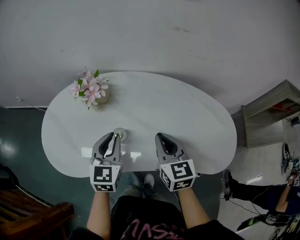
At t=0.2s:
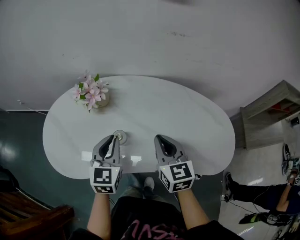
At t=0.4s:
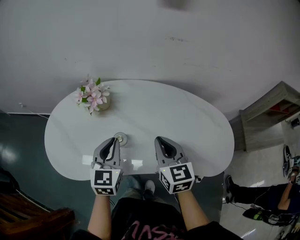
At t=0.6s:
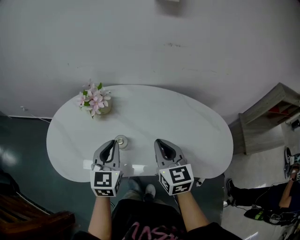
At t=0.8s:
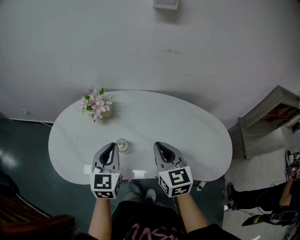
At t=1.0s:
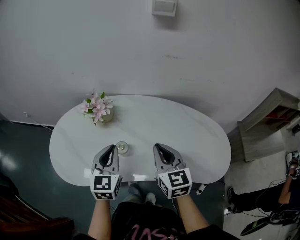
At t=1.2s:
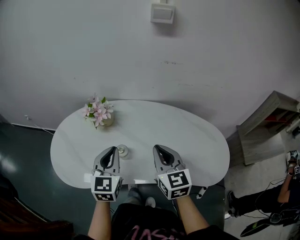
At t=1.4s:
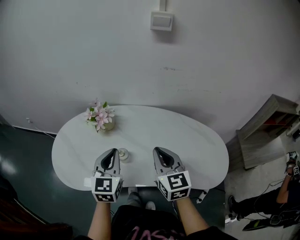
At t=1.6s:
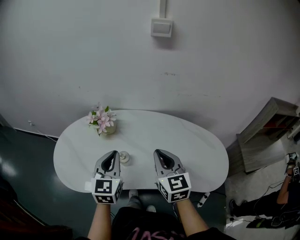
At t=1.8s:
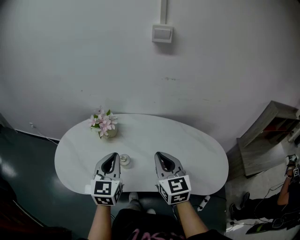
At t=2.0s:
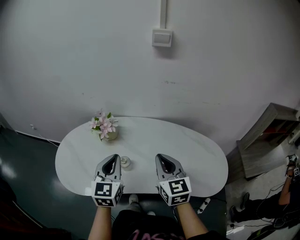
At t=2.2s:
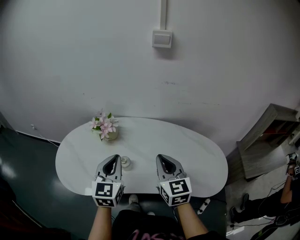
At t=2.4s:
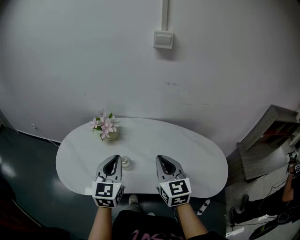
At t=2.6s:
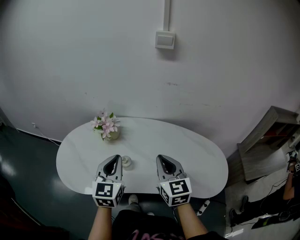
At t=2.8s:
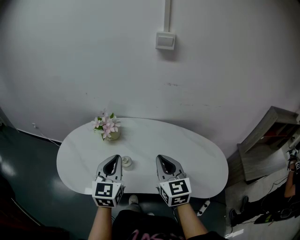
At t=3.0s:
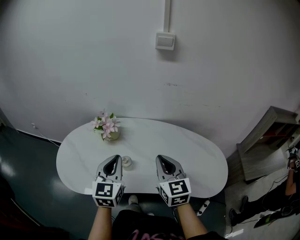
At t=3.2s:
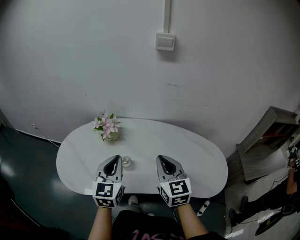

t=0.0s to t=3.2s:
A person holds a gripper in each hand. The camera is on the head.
t=0.0s to t=1.6s: Both grippers travel together upward, about 10 cm.
t=1.6s to t=3.2s: The grippers move only a little.

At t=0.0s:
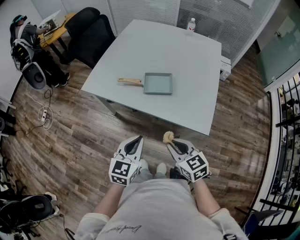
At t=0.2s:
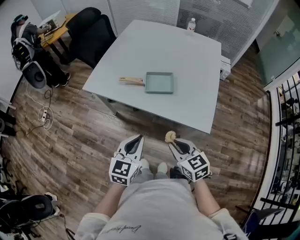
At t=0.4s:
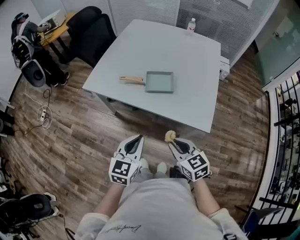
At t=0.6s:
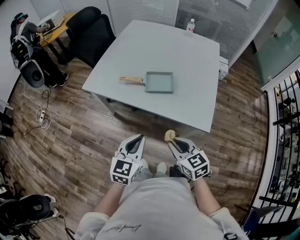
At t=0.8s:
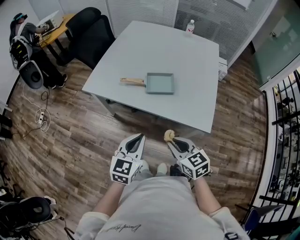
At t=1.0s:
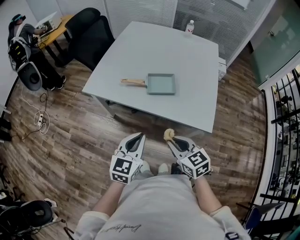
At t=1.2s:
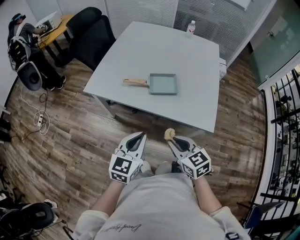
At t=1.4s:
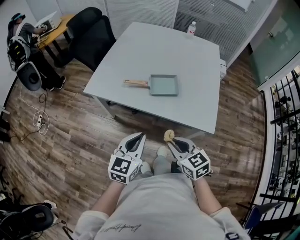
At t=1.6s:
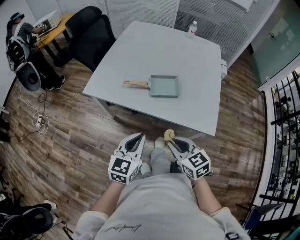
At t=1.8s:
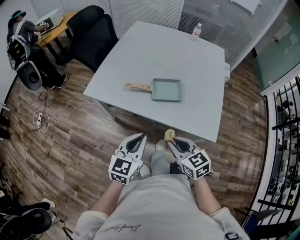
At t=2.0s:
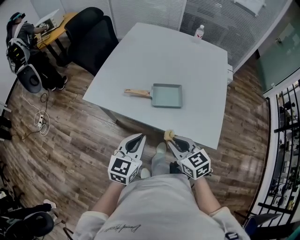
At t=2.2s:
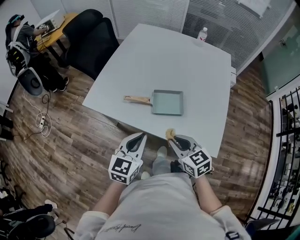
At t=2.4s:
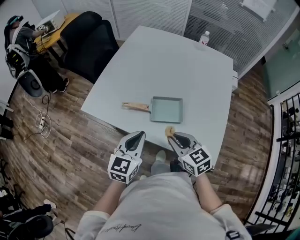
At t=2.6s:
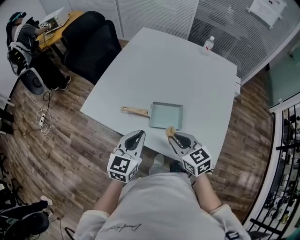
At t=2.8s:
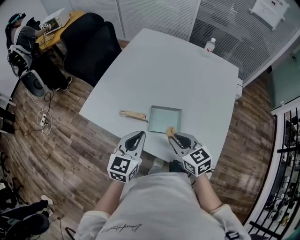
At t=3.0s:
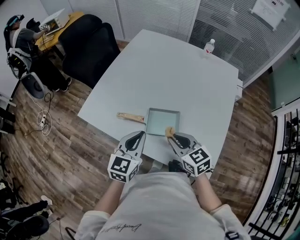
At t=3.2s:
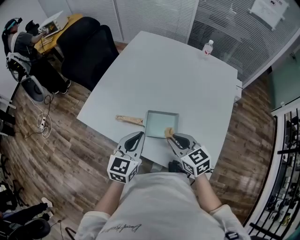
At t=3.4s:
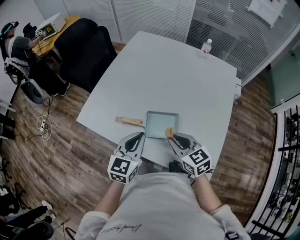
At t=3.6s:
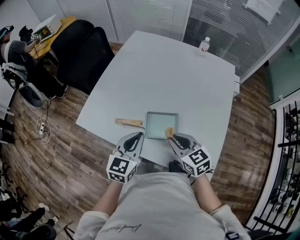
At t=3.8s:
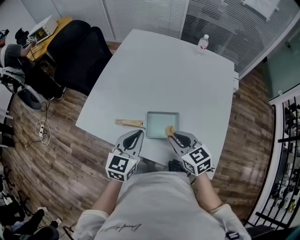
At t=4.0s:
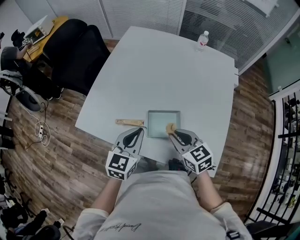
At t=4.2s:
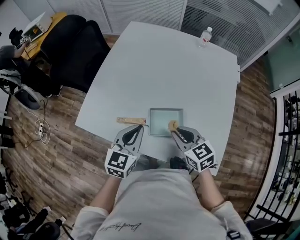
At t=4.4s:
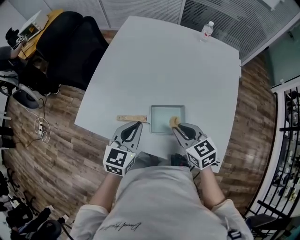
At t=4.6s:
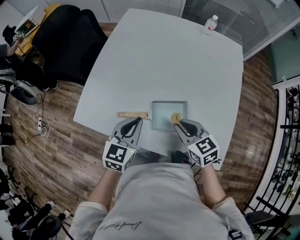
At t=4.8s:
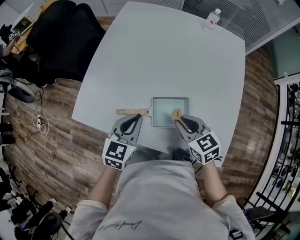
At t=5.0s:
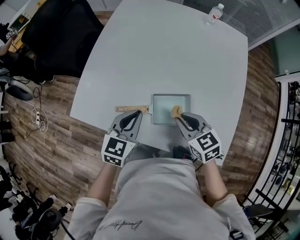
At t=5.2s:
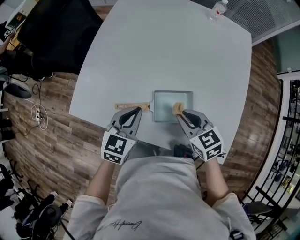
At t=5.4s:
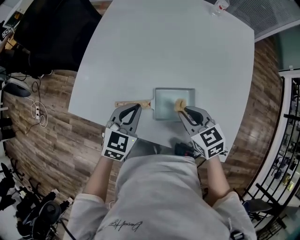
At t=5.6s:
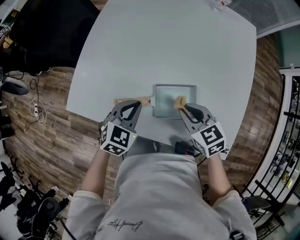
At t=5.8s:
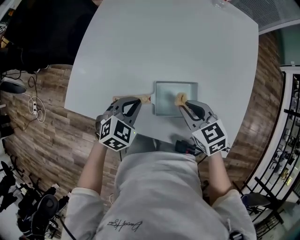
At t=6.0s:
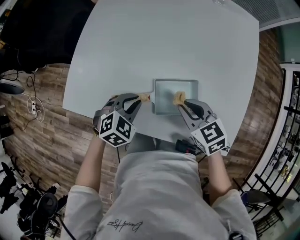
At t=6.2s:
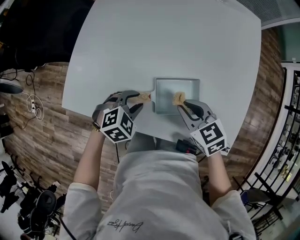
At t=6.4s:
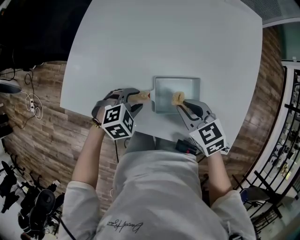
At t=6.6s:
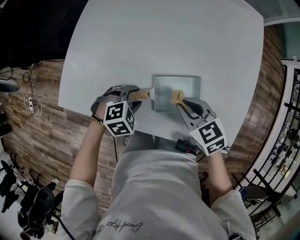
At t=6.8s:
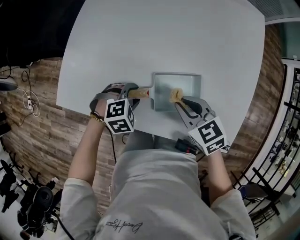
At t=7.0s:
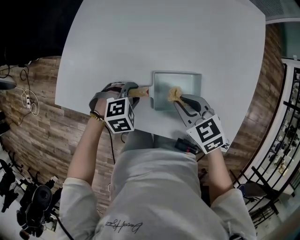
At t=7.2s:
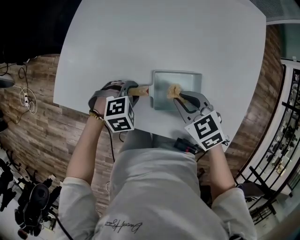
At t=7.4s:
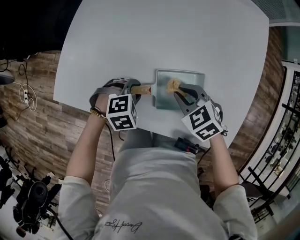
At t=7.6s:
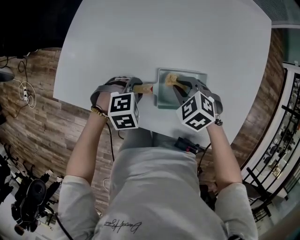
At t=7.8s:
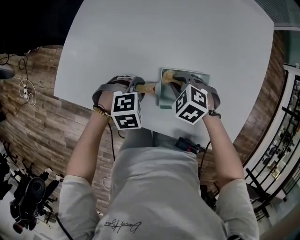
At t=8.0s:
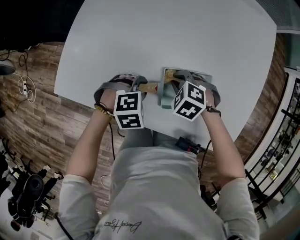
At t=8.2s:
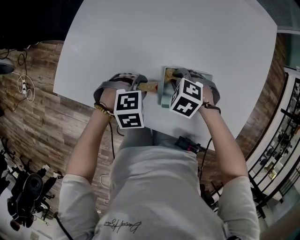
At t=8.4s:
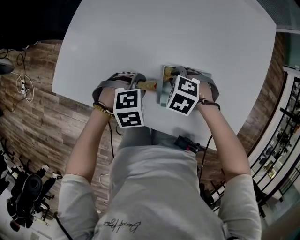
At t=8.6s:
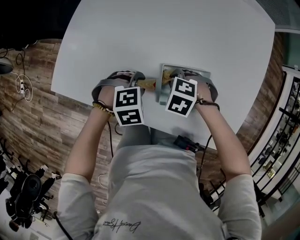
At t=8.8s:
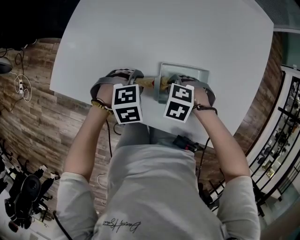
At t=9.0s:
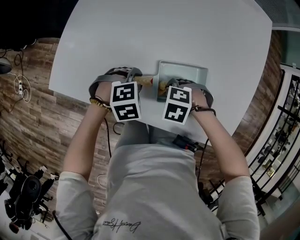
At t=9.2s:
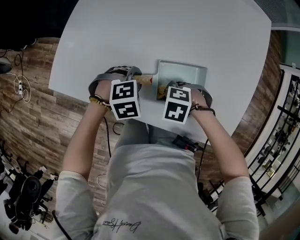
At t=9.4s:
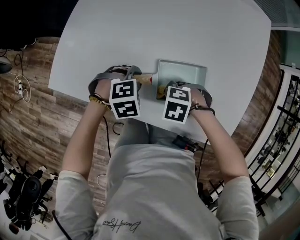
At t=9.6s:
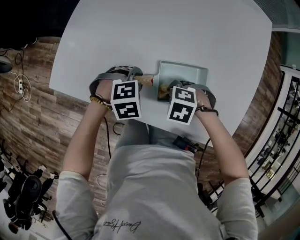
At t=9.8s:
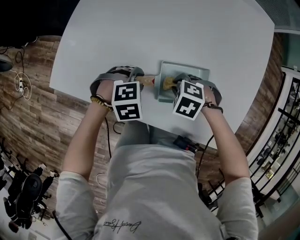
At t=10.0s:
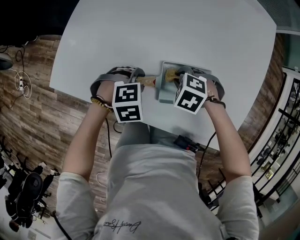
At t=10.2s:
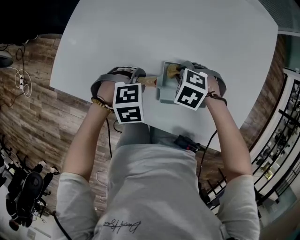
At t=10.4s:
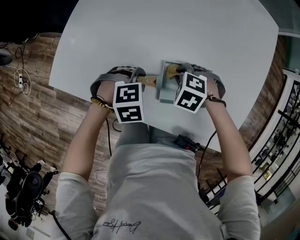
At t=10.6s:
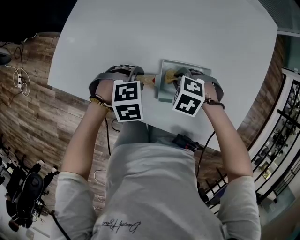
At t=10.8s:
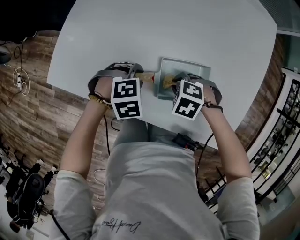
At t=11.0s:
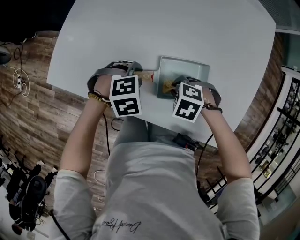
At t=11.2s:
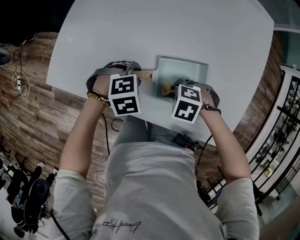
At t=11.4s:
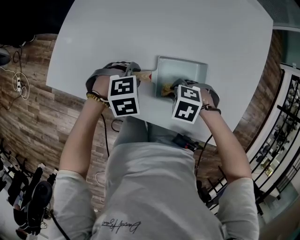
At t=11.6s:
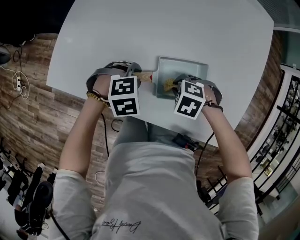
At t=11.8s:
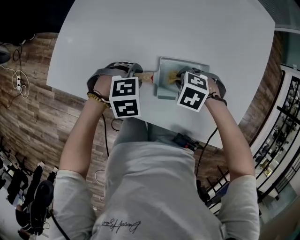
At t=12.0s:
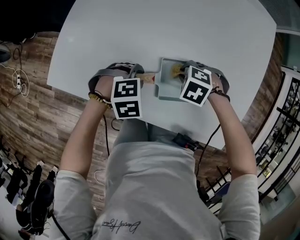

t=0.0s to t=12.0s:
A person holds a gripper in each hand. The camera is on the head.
t=0.0s to t=1.6s: The grippers both shift to the left by some 5 cm.
t=1.6s to t=3.0s: Both grippers move forward, approximately 25 cm.
t=3.0s to t=4.4s: Both grippers travel together forward, roughly 5 cm.
t=4.4s to t=6.0s: The left gripper heads downward, covering some 15 cm, and tilts its fingers some 30 degrees downward. Meanwhile the right gripper goes approximately 5 cm downward.
t=6.0s to t=7.6s: Both grippers travel together downward, roughly 10 cm. The left gripper rotates roughly 20 degrees, and opens up. Meanwhile the right gripper swivels roughly 40 degrees.
t=7.6s to t=9.0s: The right gripper shifts by approximately 10 cm, and turns by approximately 30 degrees.
t=9.0s to t=10.4s: The right gripper shifts by approximately 5 cm.

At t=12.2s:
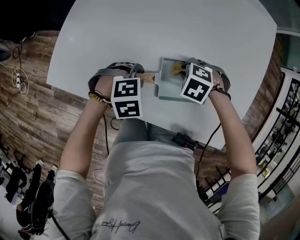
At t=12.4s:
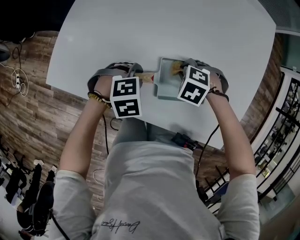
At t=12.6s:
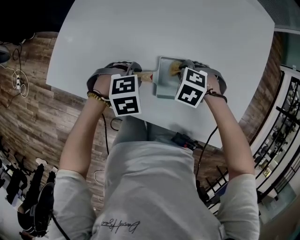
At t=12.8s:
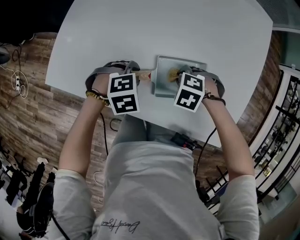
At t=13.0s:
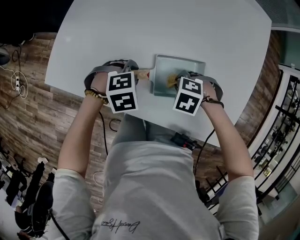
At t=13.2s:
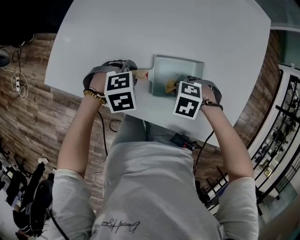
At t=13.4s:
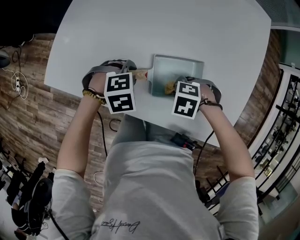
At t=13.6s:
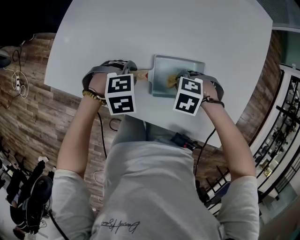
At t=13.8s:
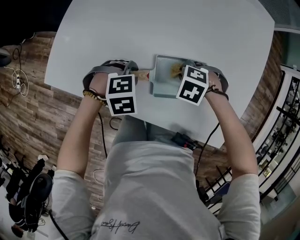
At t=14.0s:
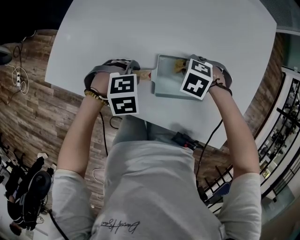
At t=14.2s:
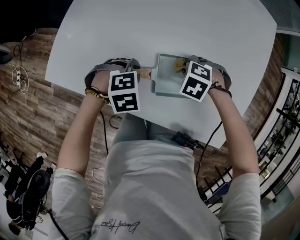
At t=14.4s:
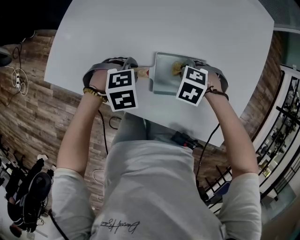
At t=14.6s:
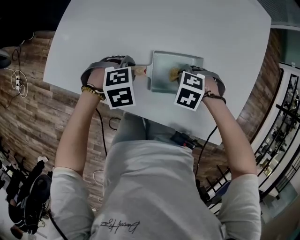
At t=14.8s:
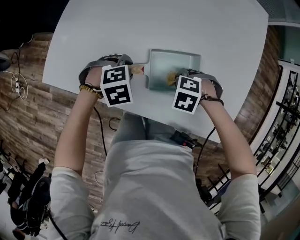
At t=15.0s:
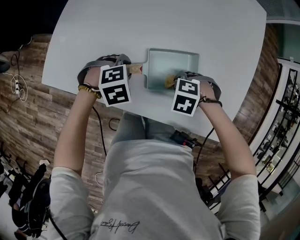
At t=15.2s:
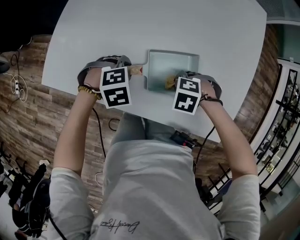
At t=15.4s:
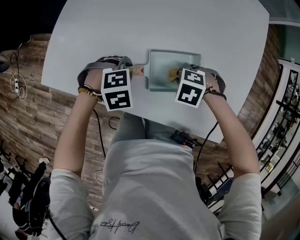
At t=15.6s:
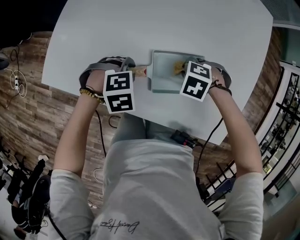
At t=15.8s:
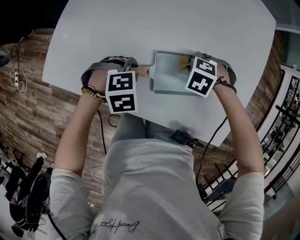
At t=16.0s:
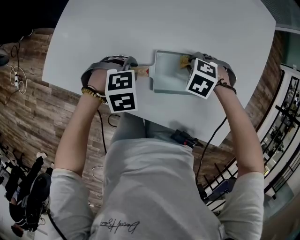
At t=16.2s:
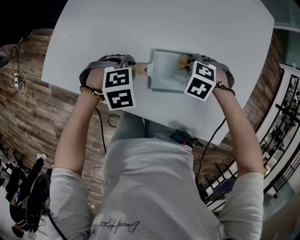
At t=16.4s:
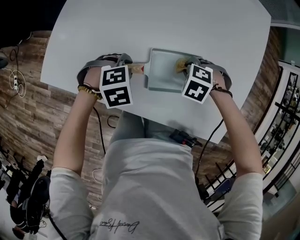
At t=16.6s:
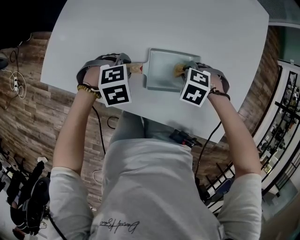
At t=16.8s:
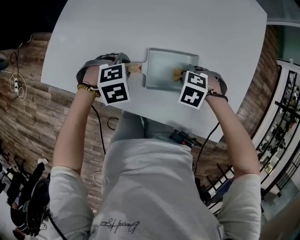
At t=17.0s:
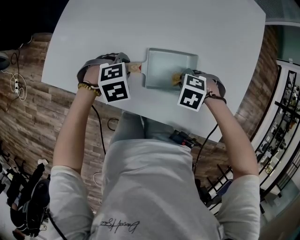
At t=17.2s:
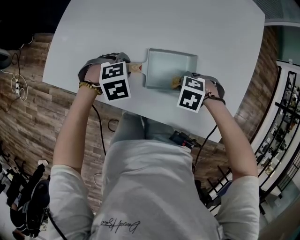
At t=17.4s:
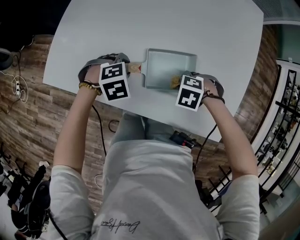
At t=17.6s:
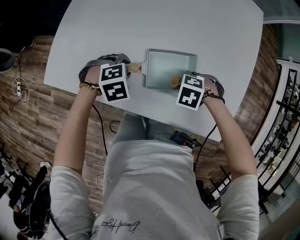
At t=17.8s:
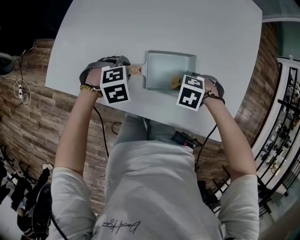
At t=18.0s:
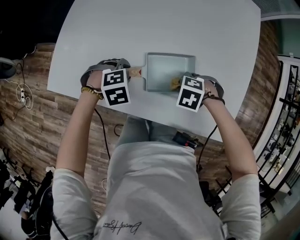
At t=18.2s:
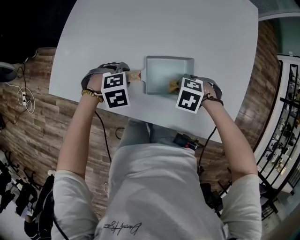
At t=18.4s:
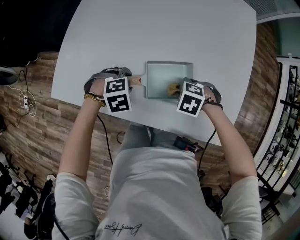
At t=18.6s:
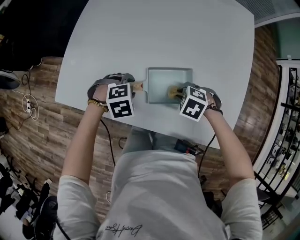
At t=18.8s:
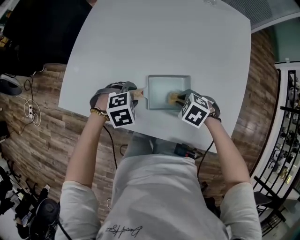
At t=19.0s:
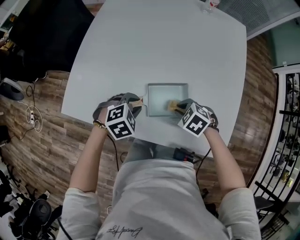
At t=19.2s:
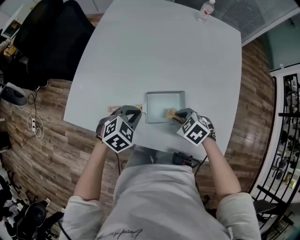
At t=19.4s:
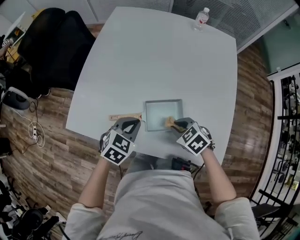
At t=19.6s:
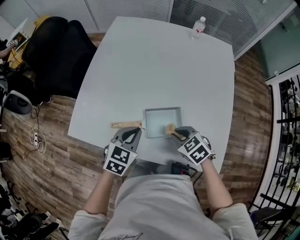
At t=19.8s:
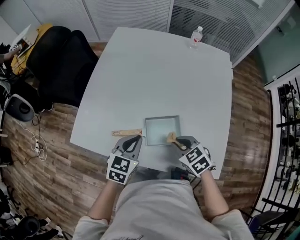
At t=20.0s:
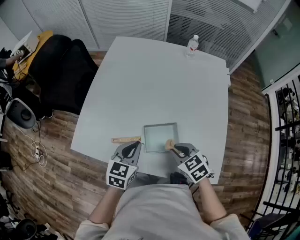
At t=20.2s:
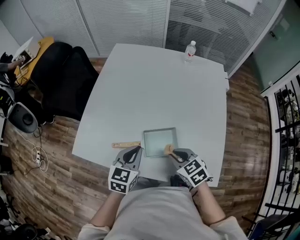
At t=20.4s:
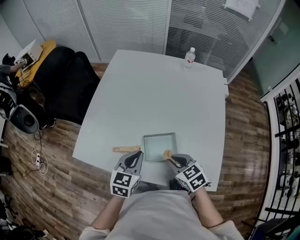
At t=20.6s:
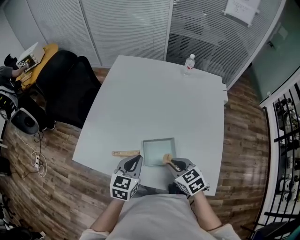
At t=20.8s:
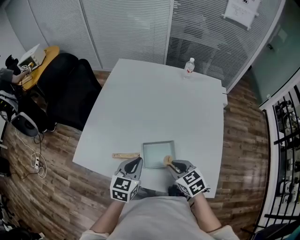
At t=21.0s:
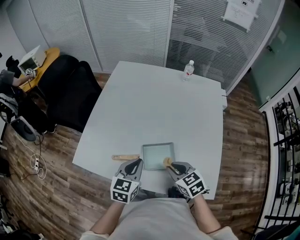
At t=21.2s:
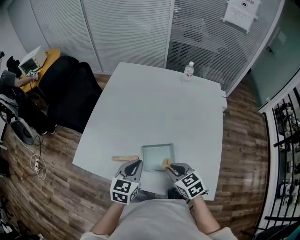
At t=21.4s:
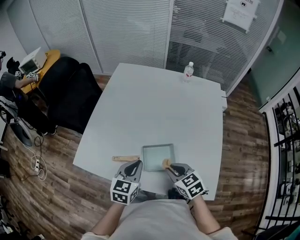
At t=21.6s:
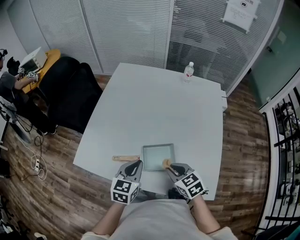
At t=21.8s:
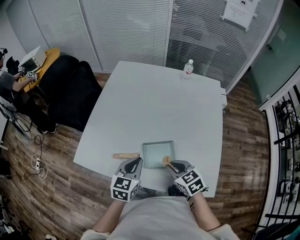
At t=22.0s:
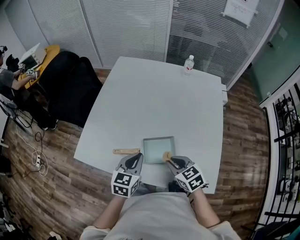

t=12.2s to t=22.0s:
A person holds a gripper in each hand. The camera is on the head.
t=13.6s to t=15.0s: The grippers move only a little.
t=15.0s to t=16.4s: The right gripper moves approximately 5 cm.
t=16.4s to t=17.8s: The right gripper shifts by about 5 cm.
t=17.8s to t=19.2s: The grippers both shift upward by about 10 cm. The right gripper changes its angle by some 40 degrees, while the left gripper turns by approximately 30 degrees, and closes up.
t=19.2s to t=20.6s: The grippers both shift upward by about 10 cm. The right gripper swivels approximately 30 degrees, while the left gripper changes its angle by some 40 degrees.
t=20.6s to t=22.0s: The two grippers keep their place.
